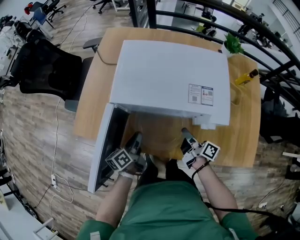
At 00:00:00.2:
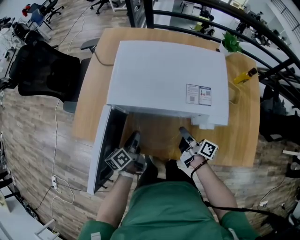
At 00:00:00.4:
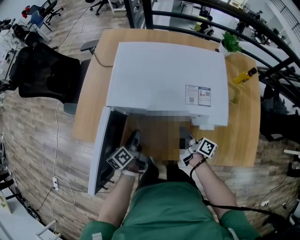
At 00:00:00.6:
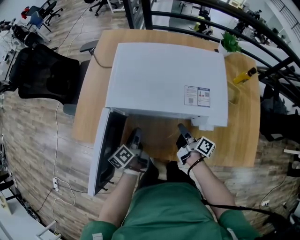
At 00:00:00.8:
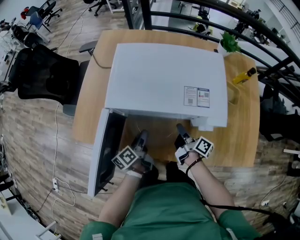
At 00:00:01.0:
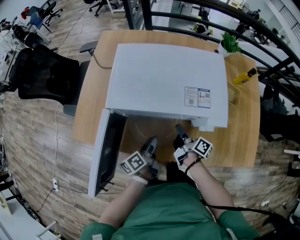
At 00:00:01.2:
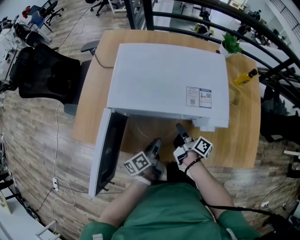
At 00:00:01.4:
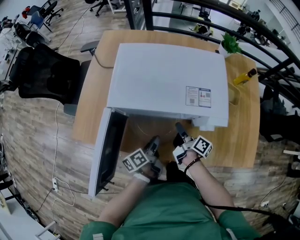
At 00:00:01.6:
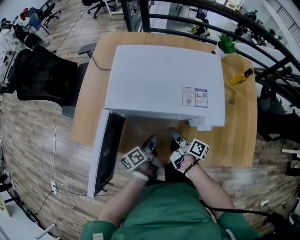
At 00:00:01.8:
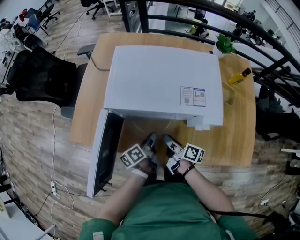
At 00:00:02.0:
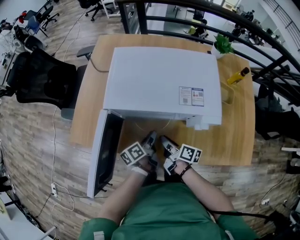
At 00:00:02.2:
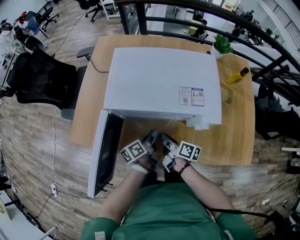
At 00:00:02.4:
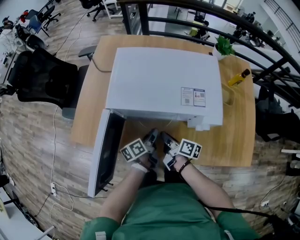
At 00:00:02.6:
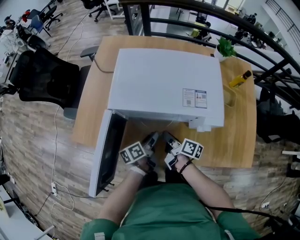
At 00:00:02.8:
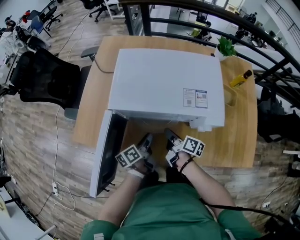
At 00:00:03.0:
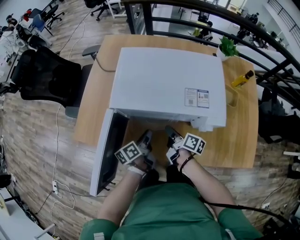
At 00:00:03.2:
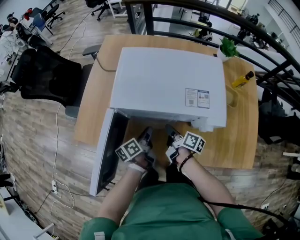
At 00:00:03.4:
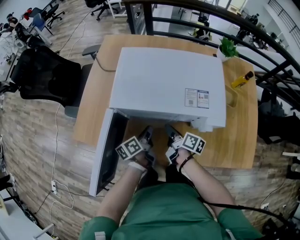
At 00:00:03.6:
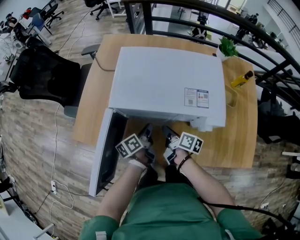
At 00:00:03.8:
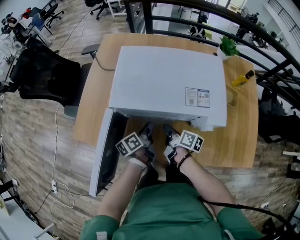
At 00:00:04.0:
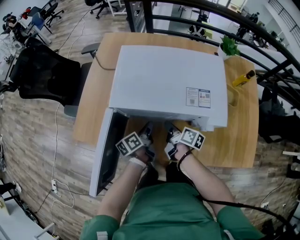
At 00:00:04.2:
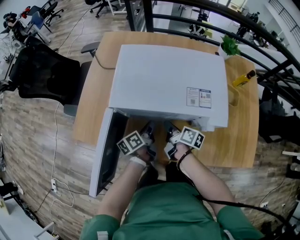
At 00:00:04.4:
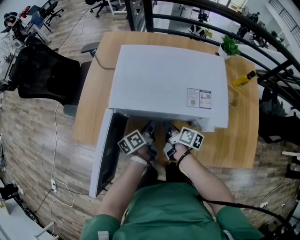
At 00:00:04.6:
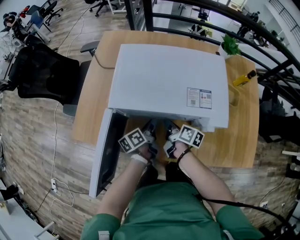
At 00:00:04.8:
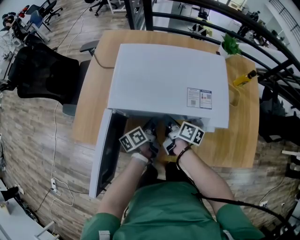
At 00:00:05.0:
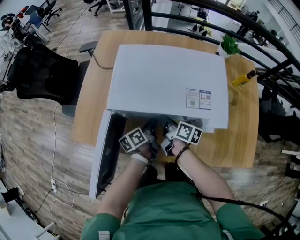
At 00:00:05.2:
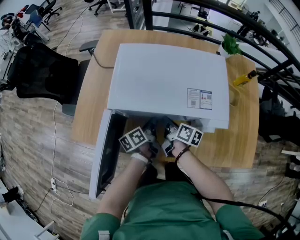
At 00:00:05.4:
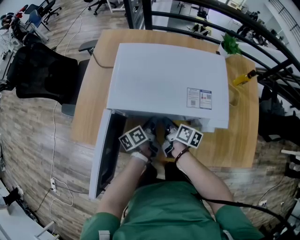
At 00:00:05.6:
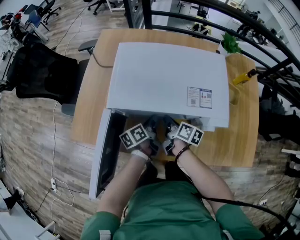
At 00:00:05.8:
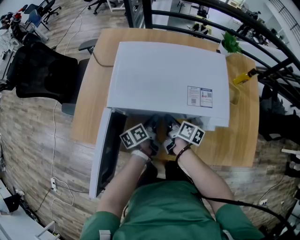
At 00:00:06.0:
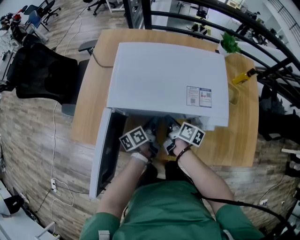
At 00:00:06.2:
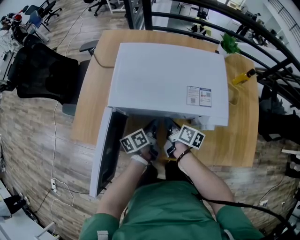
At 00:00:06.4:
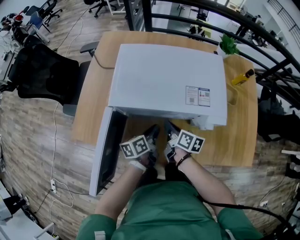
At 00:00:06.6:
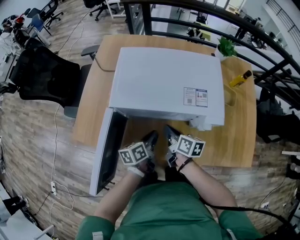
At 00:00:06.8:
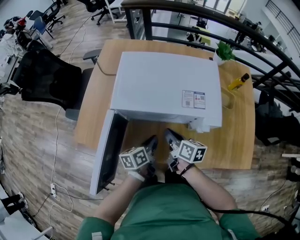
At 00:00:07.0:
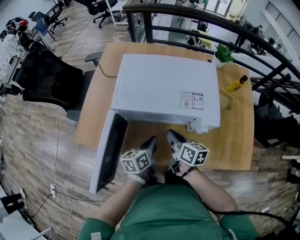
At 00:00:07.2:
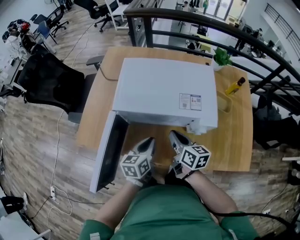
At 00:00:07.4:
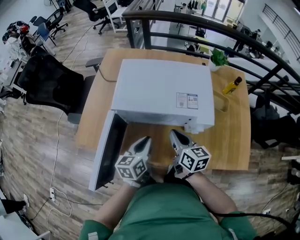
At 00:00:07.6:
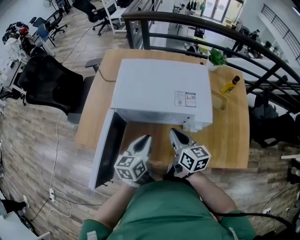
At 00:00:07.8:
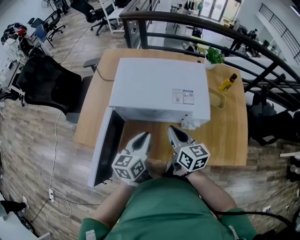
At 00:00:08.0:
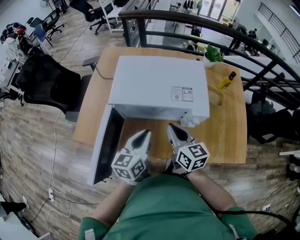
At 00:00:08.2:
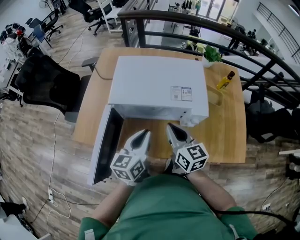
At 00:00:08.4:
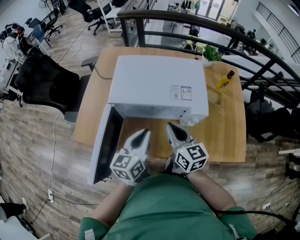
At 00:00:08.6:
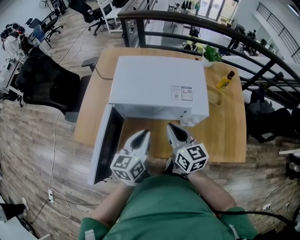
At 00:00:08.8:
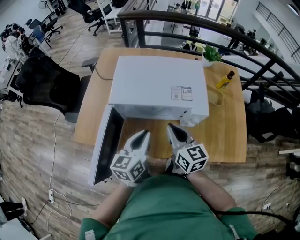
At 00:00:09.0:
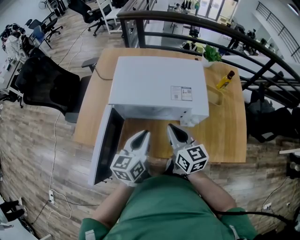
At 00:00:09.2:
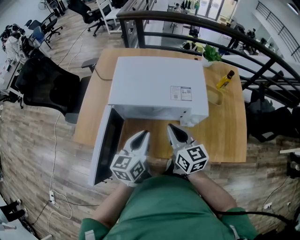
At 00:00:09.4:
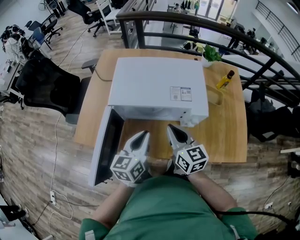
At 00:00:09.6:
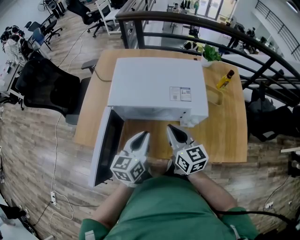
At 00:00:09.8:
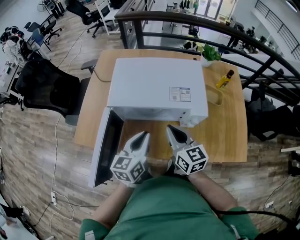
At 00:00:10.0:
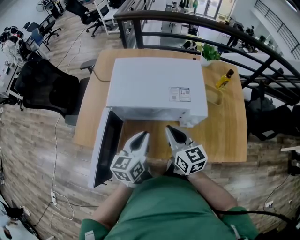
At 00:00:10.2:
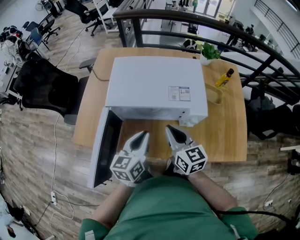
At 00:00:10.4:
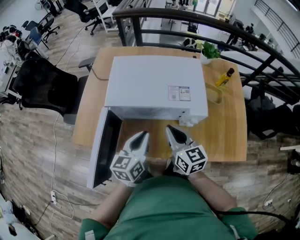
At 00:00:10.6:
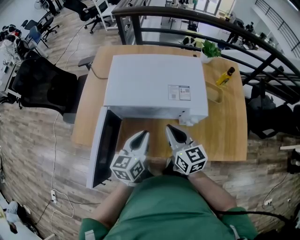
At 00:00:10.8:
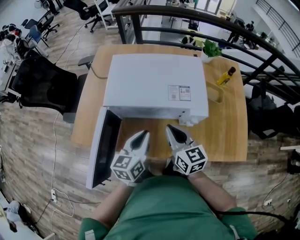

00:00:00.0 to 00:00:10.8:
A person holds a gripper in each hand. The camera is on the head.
00:00:00.0 to 00:00:01.6: The left gripper heads to the right, covering approximately 10 cm, while the right gripper opens up.
00:00:01.6 to 00:00:03.0: The grippers move only a little.
00:00:03.0 to 00:00:04.6: The left gripper shifts roughly 5 cm forward.
00:00:04.6 to 00:00:06.2: The grippers make only small movements.
00:00:06.2 to 00:00:07.8: Both grippers move upward and backward, some 20 cm. The right gripper rotates around the line of its fingers by approximately 40 degrees, counterclockwise from behind. The left gripper turns by about 40 degrees.
00:00:07.8 to 00:00:10.8: There are only small adjustments of the grippers.

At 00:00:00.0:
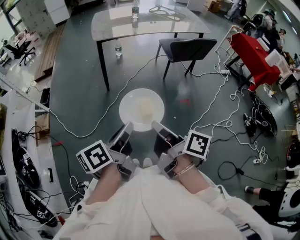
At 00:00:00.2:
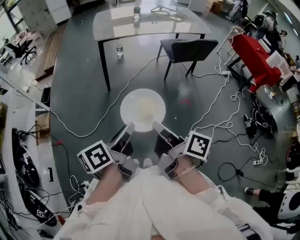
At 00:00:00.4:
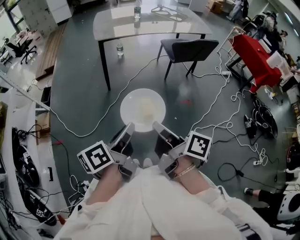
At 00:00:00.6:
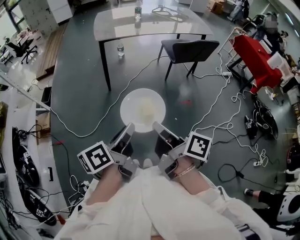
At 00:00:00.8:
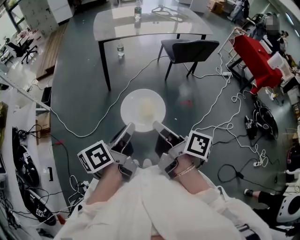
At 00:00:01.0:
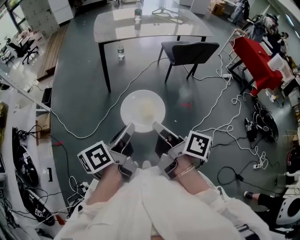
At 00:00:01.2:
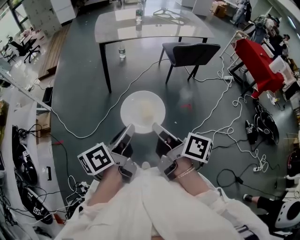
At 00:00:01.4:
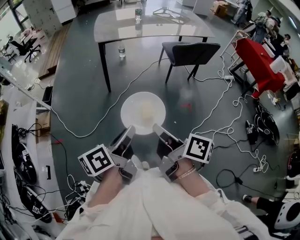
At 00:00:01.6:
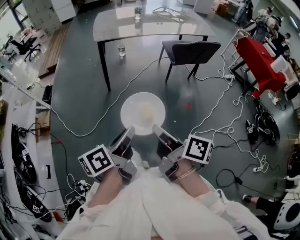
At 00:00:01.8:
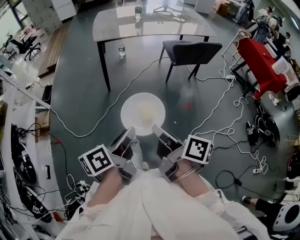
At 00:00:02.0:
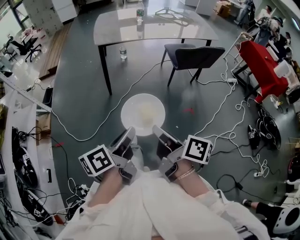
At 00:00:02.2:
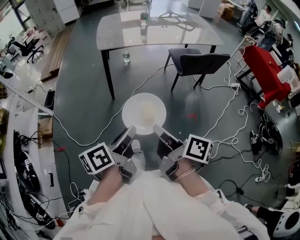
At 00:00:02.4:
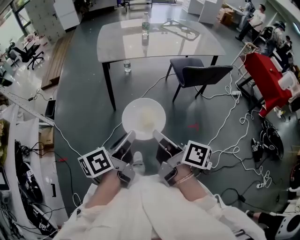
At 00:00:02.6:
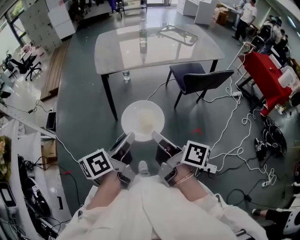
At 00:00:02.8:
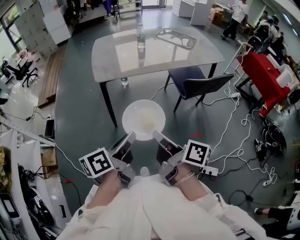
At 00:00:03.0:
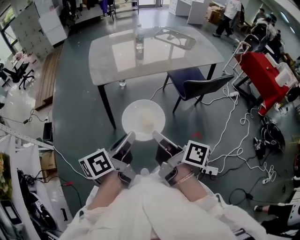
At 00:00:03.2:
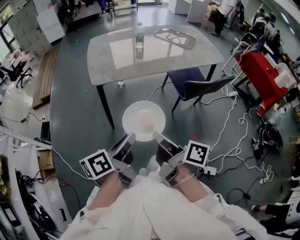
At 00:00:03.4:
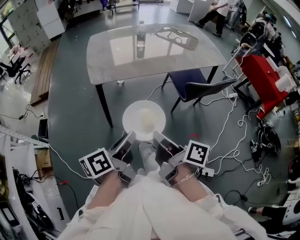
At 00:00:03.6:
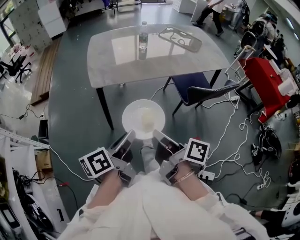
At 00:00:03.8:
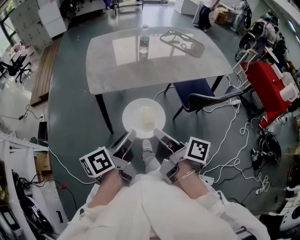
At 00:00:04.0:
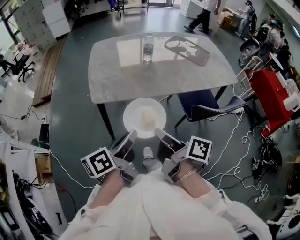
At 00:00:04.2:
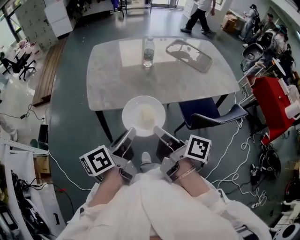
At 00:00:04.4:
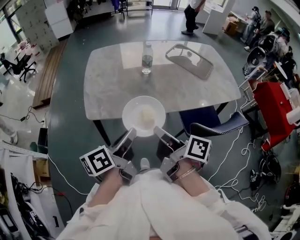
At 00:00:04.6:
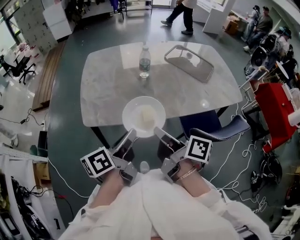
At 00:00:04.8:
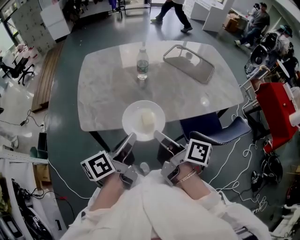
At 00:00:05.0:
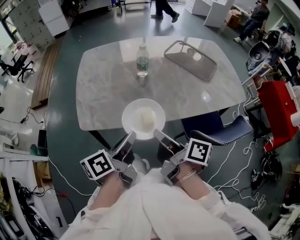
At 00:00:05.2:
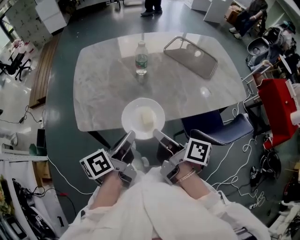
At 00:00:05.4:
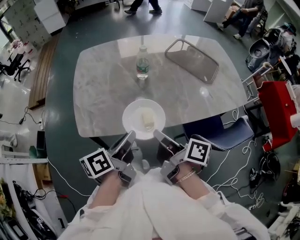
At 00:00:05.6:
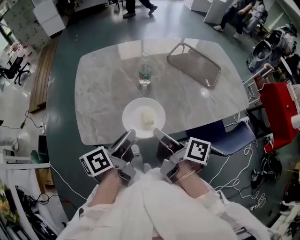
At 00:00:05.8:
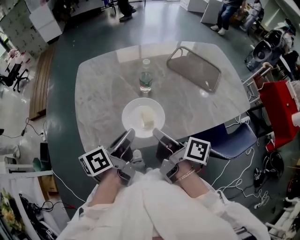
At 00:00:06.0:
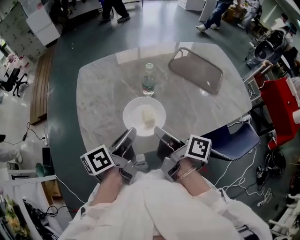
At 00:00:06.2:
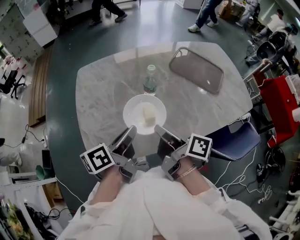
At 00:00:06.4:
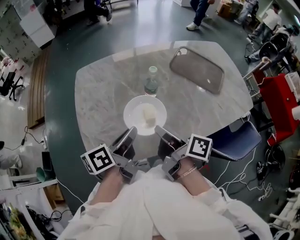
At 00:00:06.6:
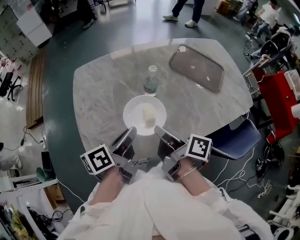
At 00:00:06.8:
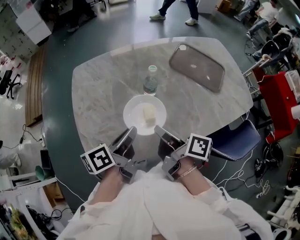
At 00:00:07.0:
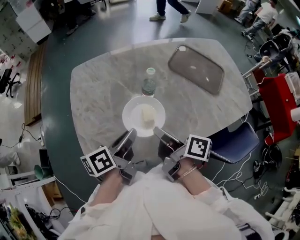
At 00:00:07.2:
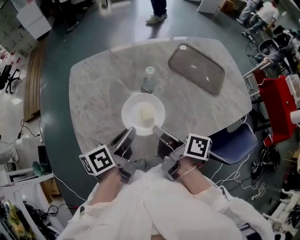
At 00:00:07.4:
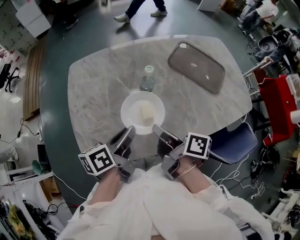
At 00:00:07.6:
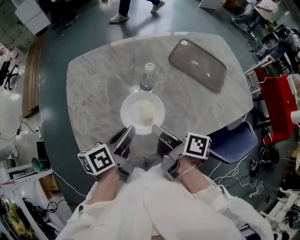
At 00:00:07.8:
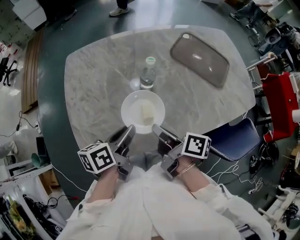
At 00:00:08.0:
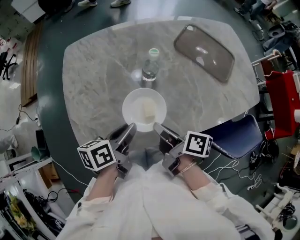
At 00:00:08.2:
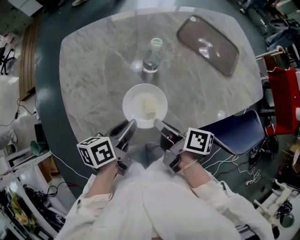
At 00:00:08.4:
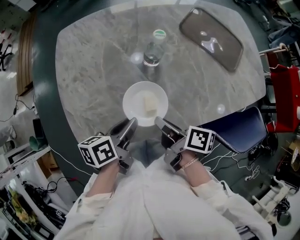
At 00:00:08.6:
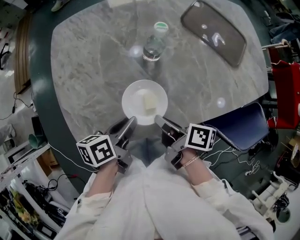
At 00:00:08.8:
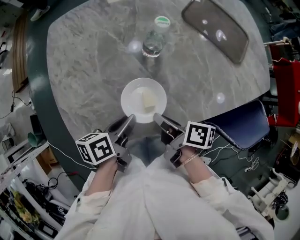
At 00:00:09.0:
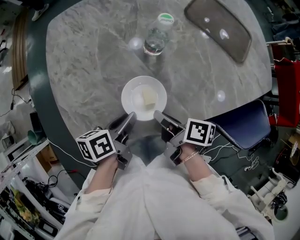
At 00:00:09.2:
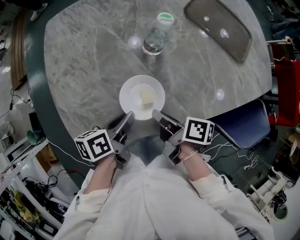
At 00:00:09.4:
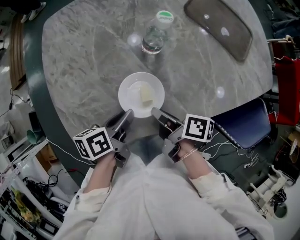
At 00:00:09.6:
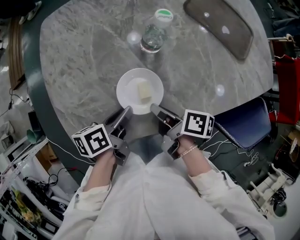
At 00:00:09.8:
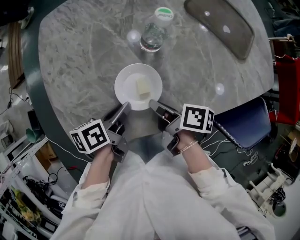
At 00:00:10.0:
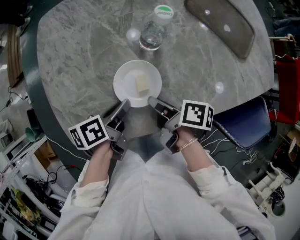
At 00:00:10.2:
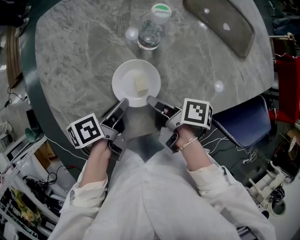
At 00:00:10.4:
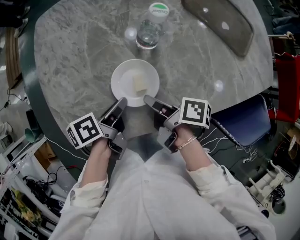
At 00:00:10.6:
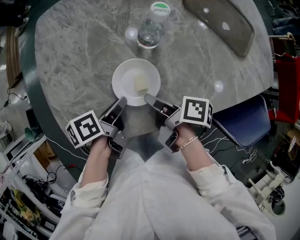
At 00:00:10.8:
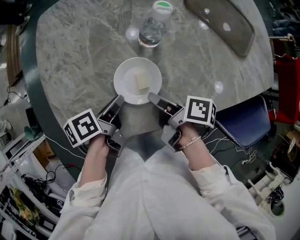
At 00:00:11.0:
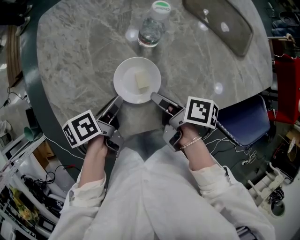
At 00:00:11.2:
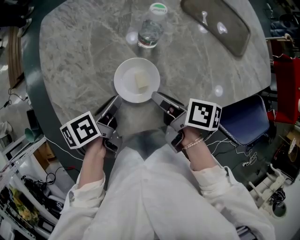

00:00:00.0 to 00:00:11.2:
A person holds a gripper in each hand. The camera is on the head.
00:00:00.0 to 00:00:01.6: The left gripper changes place by approximately 5 cm.
00:00:01.6 to 00:00:03.2: The left gripper ends up roughly 35 cm from where it was.
00:00:03.2 to 00:00:04.8: The left gripper changes place by roughly 35 cm.
00:00:04.8 to 00:00:06.4: The left gripper ends up approximately 25 cm from where it was.
00:00:06.4 to 00:00:08.0: The left gripper travels downward by some 10 cm.
00:00:08.0 to 00:00:09.6: The left gripper heads downward, covering approximately 10 cm.

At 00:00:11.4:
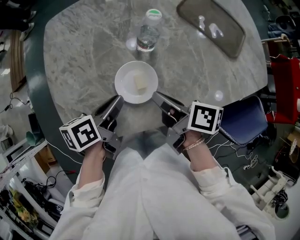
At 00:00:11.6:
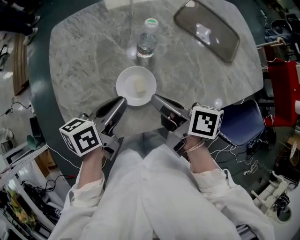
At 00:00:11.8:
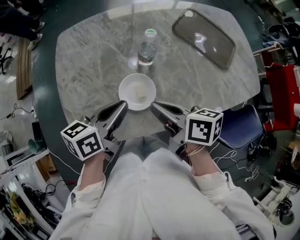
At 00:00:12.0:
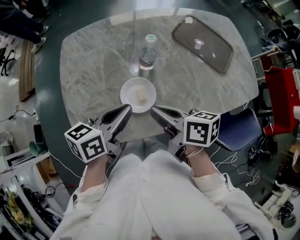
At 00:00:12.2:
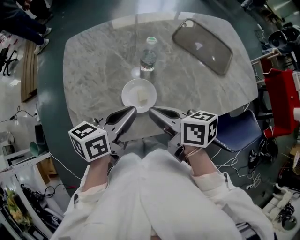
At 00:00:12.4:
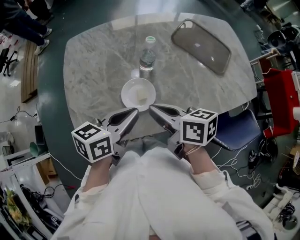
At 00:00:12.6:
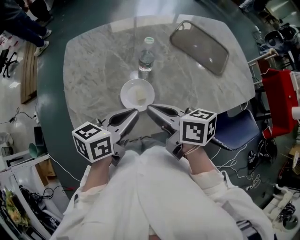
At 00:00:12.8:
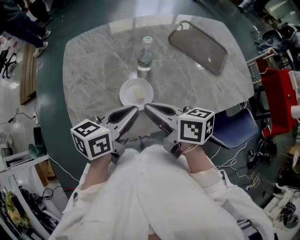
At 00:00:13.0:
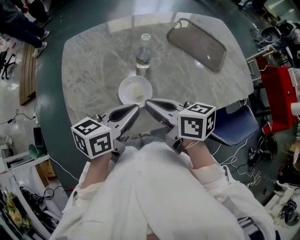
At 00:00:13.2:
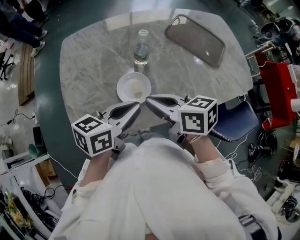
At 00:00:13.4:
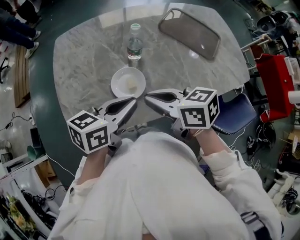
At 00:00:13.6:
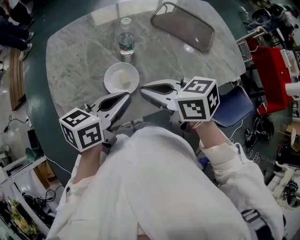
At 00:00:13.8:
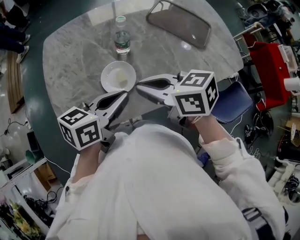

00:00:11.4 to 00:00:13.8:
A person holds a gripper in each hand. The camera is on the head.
00:00:11.4 to 00:00:12.6: The left gripper travels upward by some 15 cm, and rotates roughly 30 degrees.
